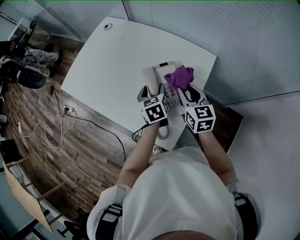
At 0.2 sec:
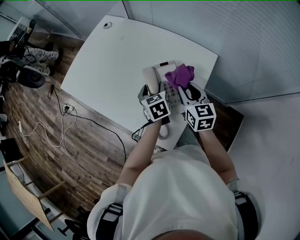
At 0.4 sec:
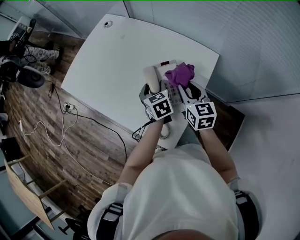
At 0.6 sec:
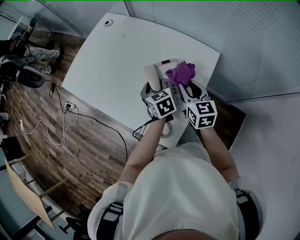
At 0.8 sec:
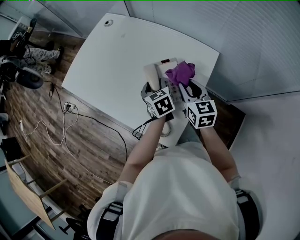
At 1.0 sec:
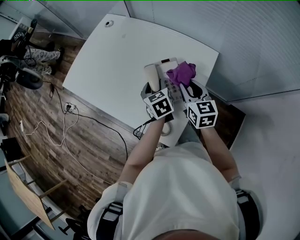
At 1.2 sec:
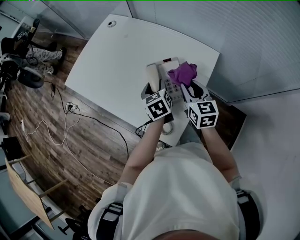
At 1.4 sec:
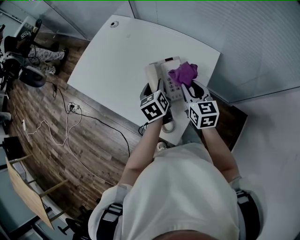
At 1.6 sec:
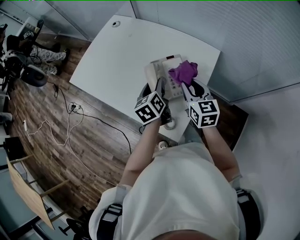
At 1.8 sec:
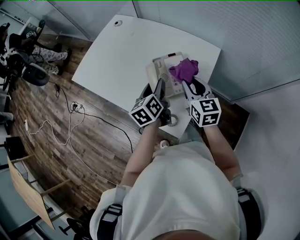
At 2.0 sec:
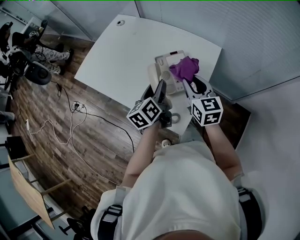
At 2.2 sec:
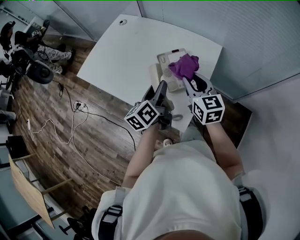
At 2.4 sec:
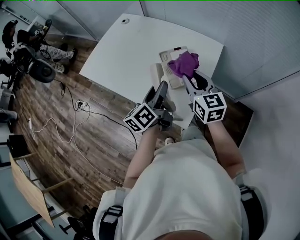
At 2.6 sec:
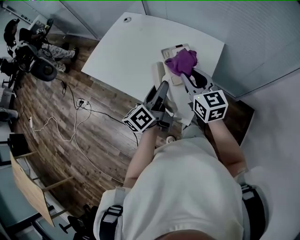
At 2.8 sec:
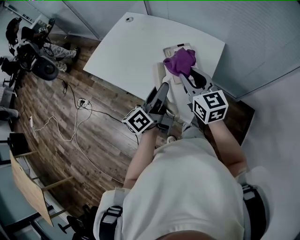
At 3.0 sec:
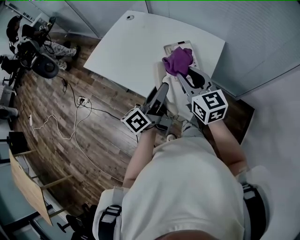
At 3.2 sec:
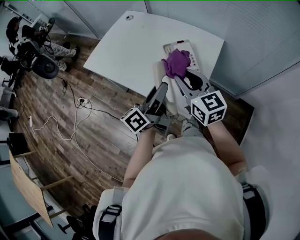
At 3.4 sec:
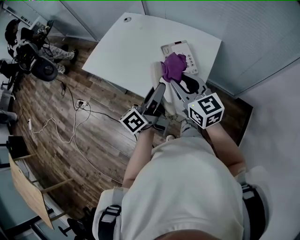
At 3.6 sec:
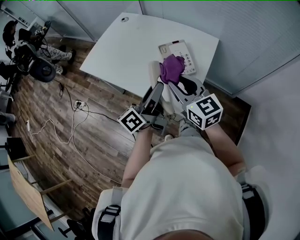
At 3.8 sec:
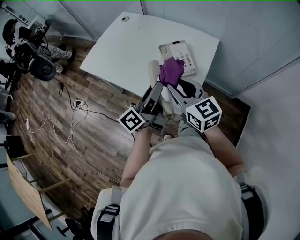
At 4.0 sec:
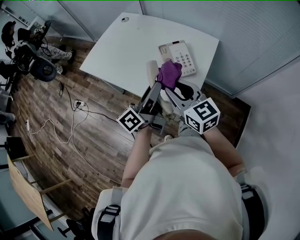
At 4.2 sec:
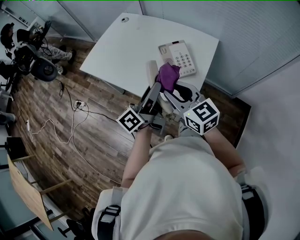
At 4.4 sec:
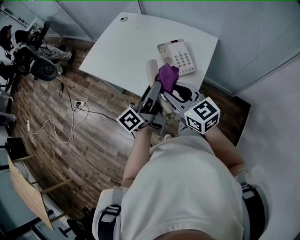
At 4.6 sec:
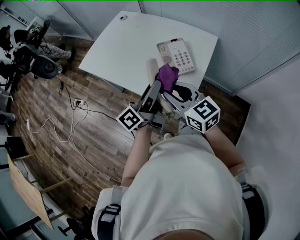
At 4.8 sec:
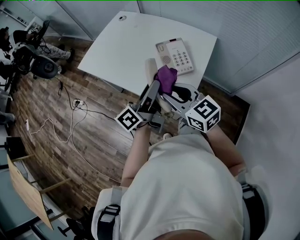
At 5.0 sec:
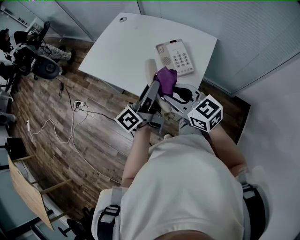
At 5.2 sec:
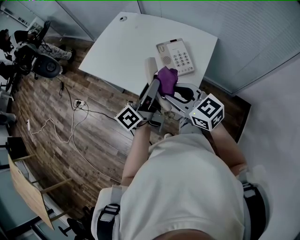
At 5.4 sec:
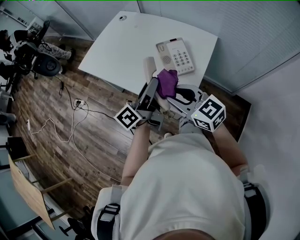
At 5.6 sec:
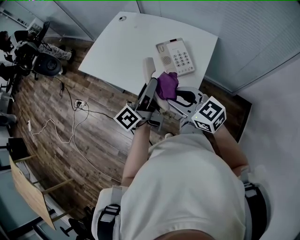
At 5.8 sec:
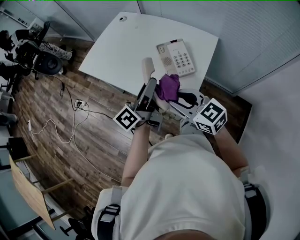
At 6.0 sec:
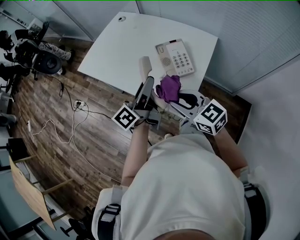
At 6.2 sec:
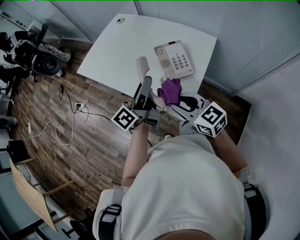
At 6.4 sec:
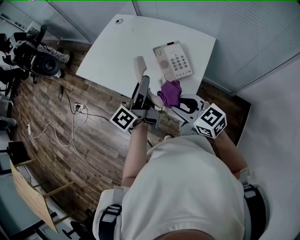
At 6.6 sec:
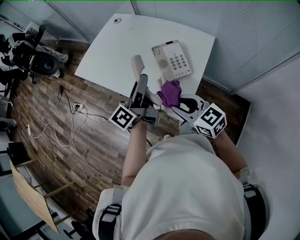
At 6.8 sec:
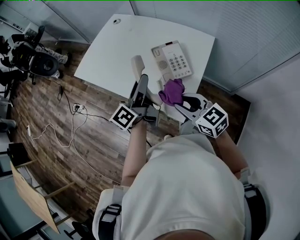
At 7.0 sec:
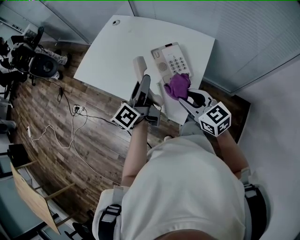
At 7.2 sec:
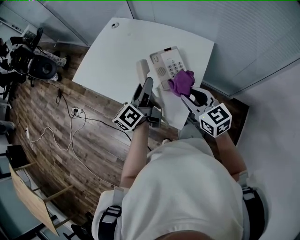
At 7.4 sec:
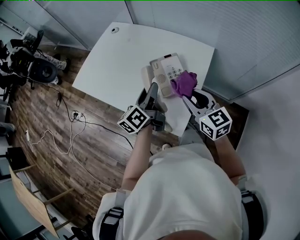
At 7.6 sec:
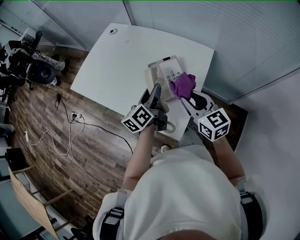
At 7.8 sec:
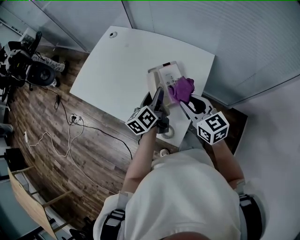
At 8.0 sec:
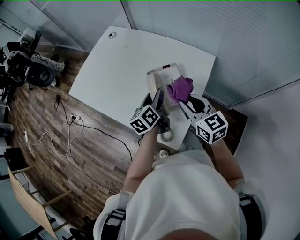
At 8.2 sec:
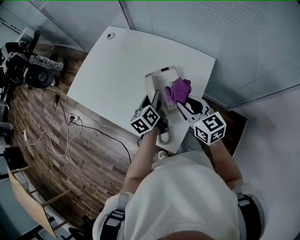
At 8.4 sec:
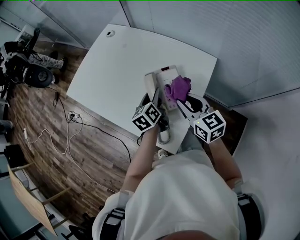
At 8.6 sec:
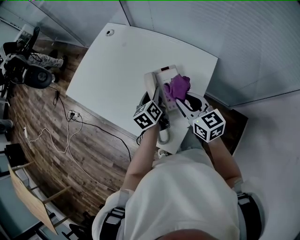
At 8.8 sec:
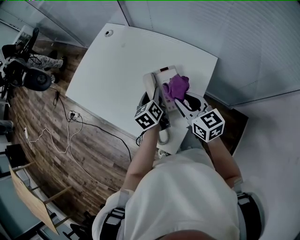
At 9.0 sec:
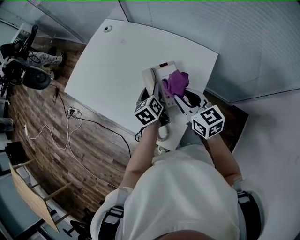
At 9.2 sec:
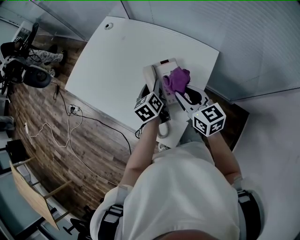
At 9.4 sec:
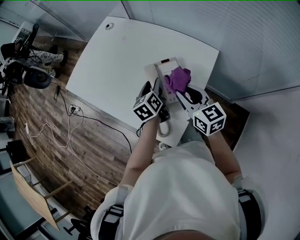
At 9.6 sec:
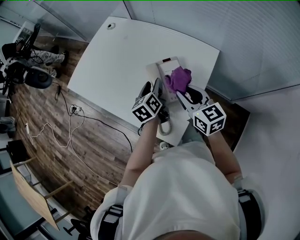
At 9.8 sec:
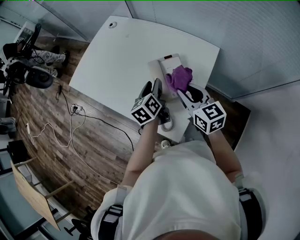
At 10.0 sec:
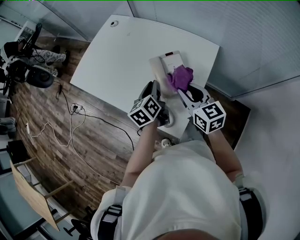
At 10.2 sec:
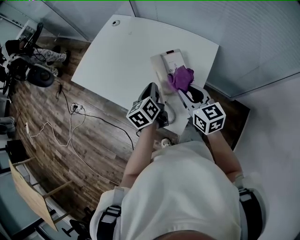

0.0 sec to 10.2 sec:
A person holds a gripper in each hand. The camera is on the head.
0.0 sec to 1.4 sec: The grippers make only small movements.
1.4 sec to 3.0 sec: The right gripper moves upward, backward and to the left, about 20 cm; the left gripper moves backward and upward, approximately 20 cm, and points its fingers some 40 degrees further upward.
3.0 sec to 4.4 sec: The right gripper goes roughly 5 cm backward.
4.4 sec to 5.8 sec: There are only small adjustments of the grippers.
5.8 sec to 7.2 sec: The right gripper goes about 10 cm to the right and forward, while the left gripper is displaced forward by approximately 10 cm.
7.2 sec to 8.8 sec: The right gripper is displaced forward by approximately 10 cm; the left gripper shifts some 20 cm downward, forward and to the right, and changes its angle by approximately 40 degrees.
8.8 sec to 10.2 sec: The left gripper travels backward and upward by approximately 10 cm, and closes up. The right gripper goes some 5 cm backward.

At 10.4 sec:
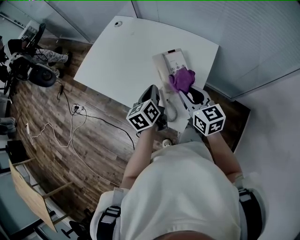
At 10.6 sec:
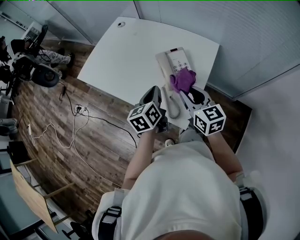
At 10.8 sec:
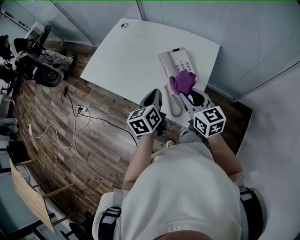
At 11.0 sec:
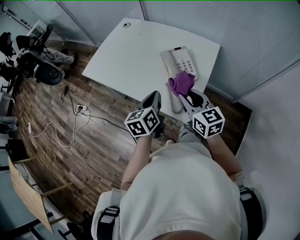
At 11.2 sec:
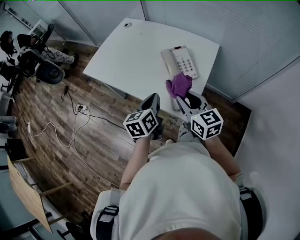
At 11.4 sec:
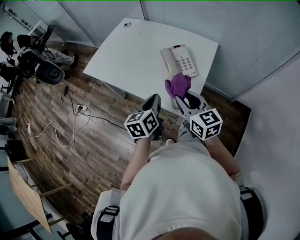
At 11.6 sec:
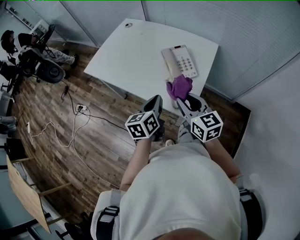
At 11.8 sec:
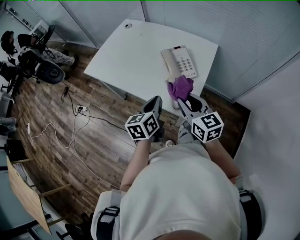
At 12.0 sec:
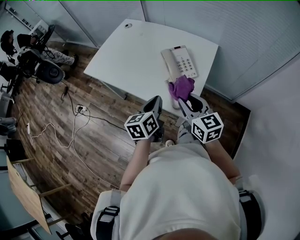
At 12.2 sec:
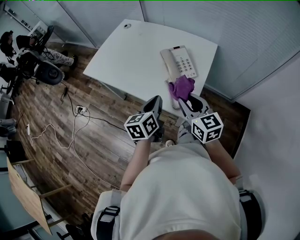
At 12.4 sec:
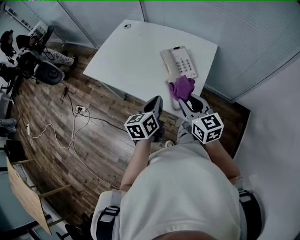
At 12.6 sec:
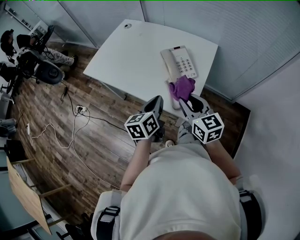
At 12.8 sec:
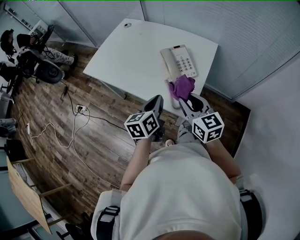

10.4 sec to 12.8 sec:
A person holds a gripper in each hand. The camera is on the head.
10.4 sec to 11.6 sec: The left gripper goes approximately 15 cm backward; the right gripper travels backward and to the left by roughly 15 cm.
11.6 sec to 12.8 sec: Both grippers stay about where they are.

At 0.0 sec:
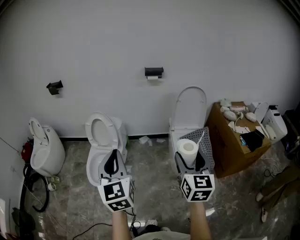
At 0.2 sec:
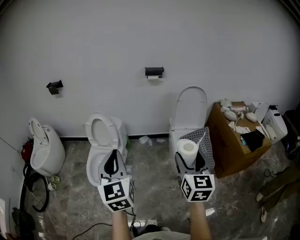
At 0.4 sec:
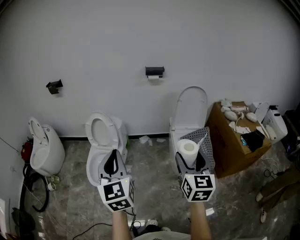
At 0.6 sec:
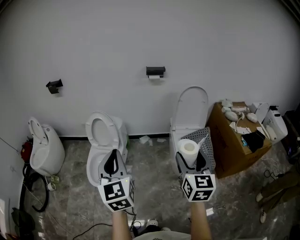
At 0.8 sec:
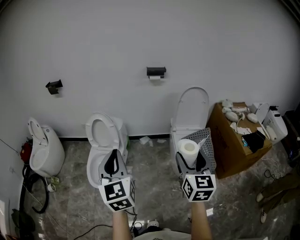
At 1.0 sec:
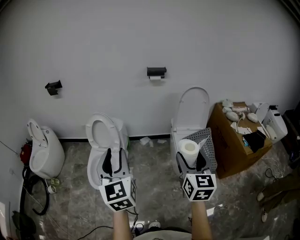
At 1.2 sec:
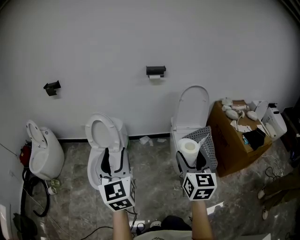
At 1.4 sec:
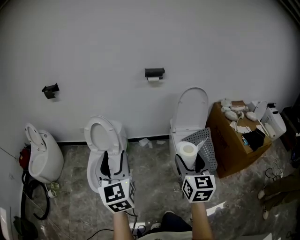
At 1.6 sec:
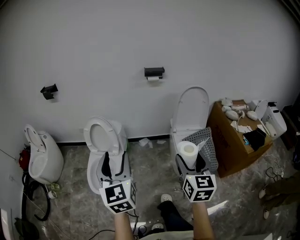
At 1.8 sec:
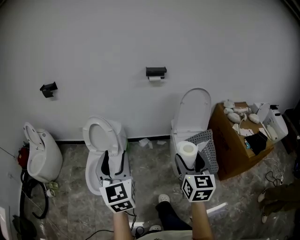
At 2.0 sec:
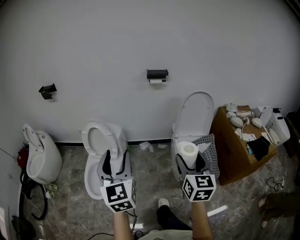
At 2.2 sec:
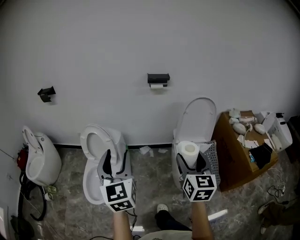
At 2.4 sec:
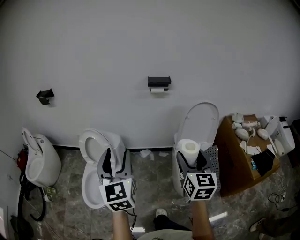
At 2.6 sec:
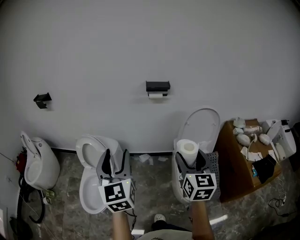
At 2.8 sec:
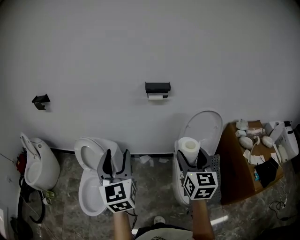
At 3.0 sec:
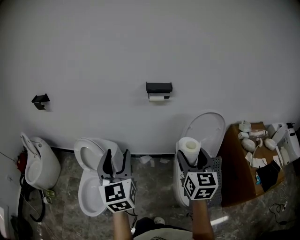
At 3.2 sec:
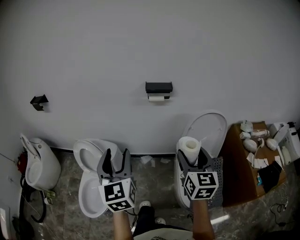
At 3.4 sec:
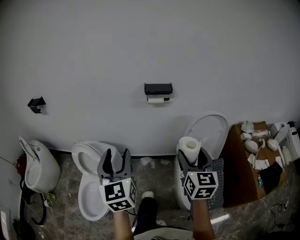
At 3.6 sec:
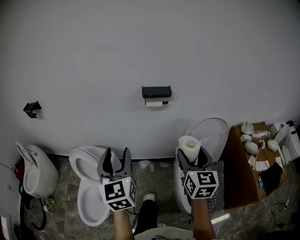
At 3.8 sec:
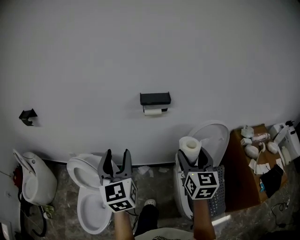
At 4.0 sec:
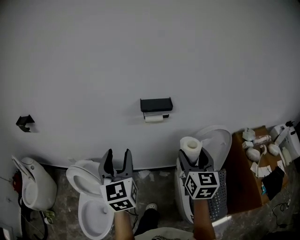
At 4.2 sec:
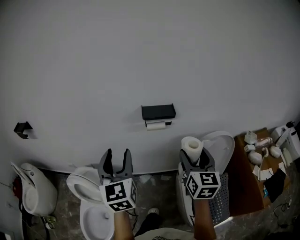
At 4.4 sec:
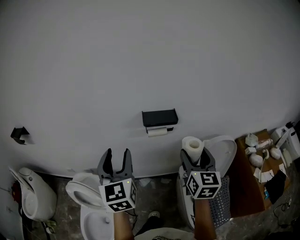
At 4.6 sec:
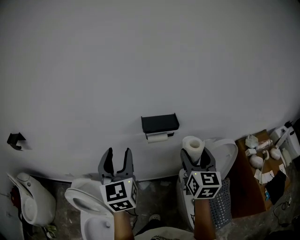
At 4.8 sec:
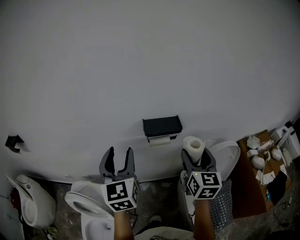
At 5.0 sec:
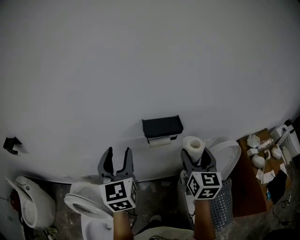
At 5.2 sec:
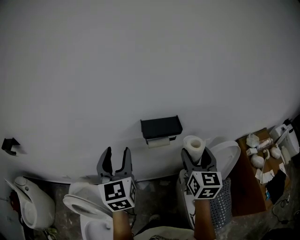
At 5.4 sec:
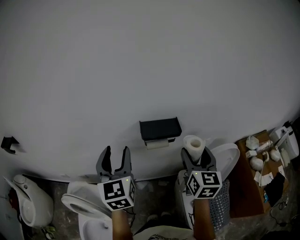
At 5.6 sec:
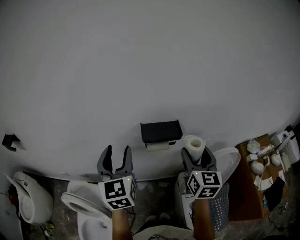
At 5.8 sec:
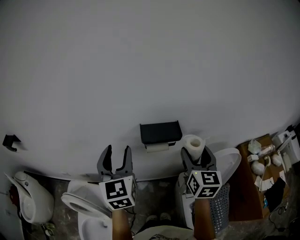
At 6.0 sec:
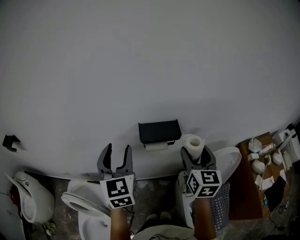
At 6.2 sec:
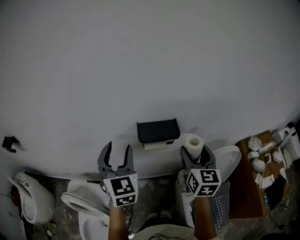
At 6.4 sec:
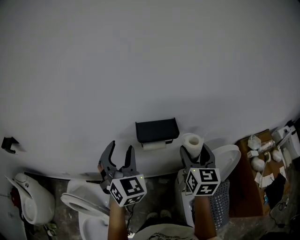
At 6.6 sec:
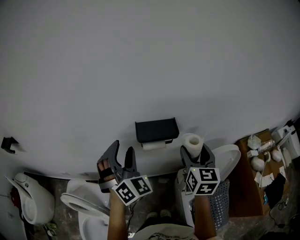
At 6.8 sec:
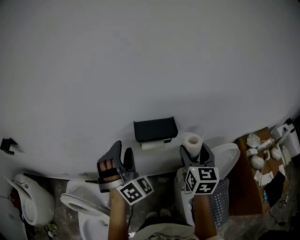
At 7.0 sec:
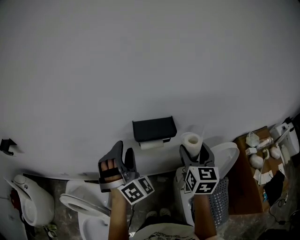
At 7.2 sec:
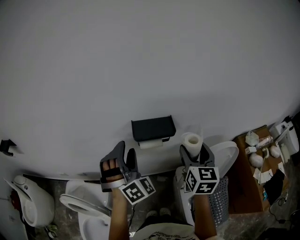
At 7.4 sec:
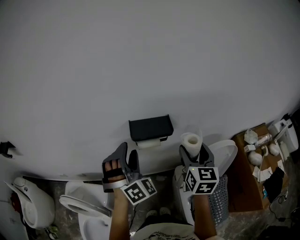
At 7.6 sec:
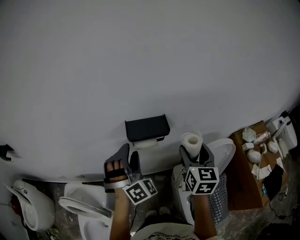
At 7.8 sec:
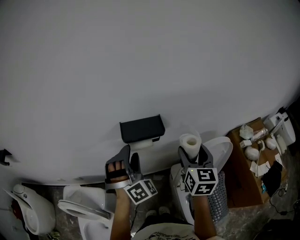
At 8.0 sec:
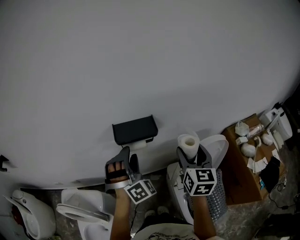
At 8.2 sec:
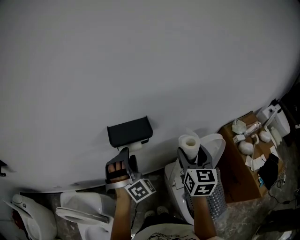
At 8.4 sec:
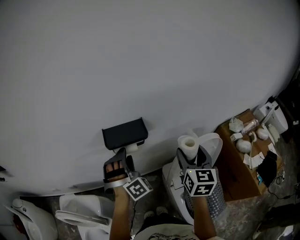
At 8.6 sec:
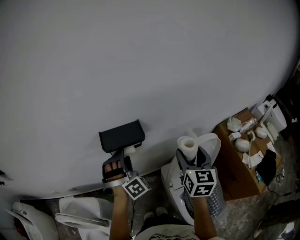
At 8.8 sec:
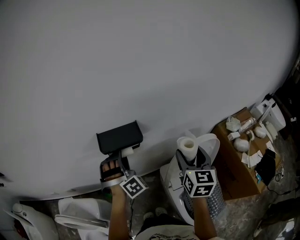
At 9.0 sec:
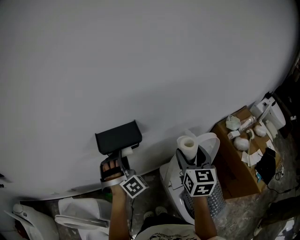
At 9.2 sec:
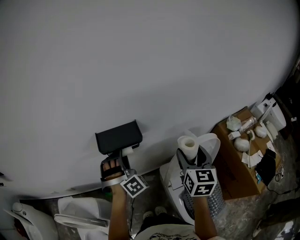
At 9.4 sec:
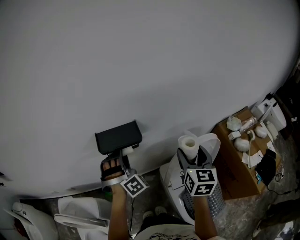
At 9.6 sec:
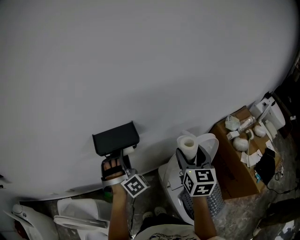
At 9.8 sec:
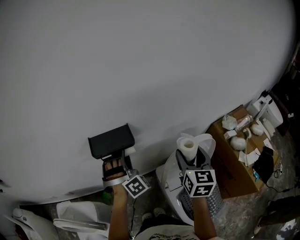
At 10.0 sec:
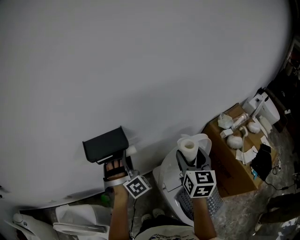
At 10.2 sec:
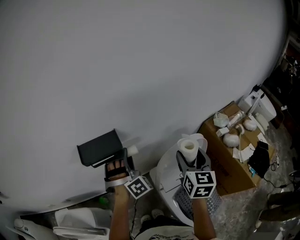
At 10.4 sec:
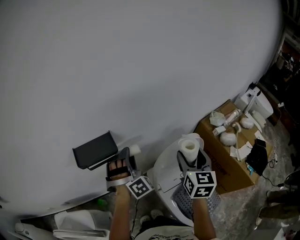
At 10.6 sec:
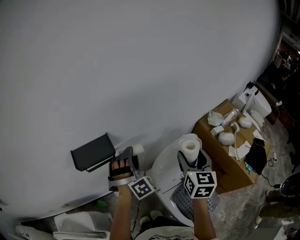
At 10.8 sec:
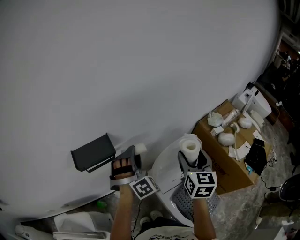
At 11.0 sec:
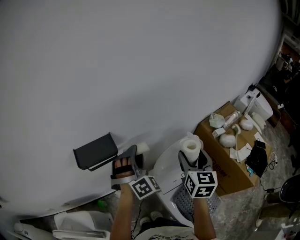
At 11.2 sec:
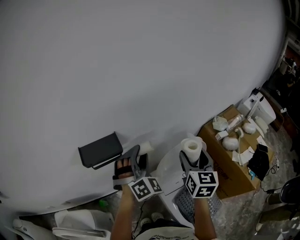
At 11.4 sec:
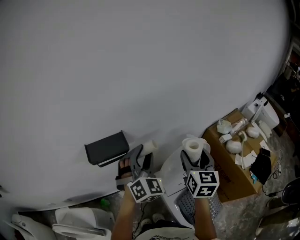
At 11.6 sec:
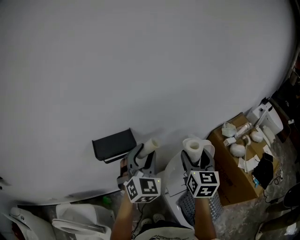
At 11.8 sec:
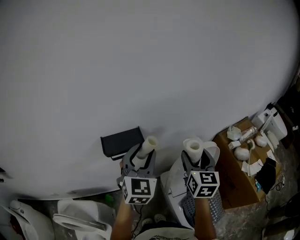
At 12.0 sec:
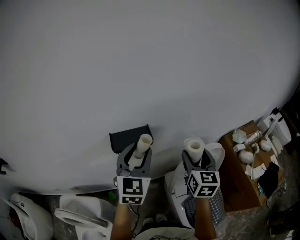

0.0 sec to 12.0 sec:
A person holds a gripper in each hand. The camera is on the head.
0.0 sec to 1.6 sec: Both grippers move forward, roughly 5 cm. The left gripper opens up.
1.6 sec to 3.0 sec: Both grippers travel together forward, approximately 35 cm.
3.0 sec to 4.4 sec: The grippers both shift forward by about 30 cm.
4.4 sec to 6.0 sec: The two grippers go about 15 cm forward.
6.0 sec to 7.6 sec: The left gripper goes some 10 cm to the right and downward, and twists roughly 60 degrees clockwise, seen from behind.
7.6 sec to 9.0 sec: The left gripper is displaced downward, to the right and forward by approximately 10 cm; the right gripper goes some 10 cm to the right.
9.0 sec to 10.4 sec: The grippers both shift to the right by approximately 10 cm.
10.4 sec to 12.0 sec: The right gripper moves to the left, approximately 10 cm, while the left gripper shifts about 20 cm upward, to the left and backward, and rolls counterclockwise, seen from behind, by approximately 60 degrees.
